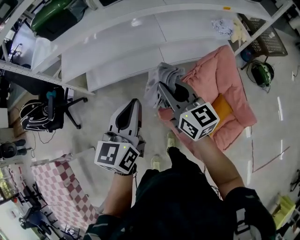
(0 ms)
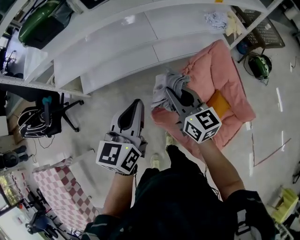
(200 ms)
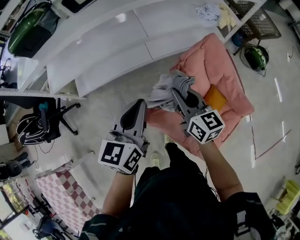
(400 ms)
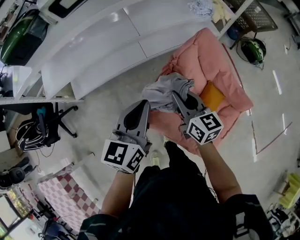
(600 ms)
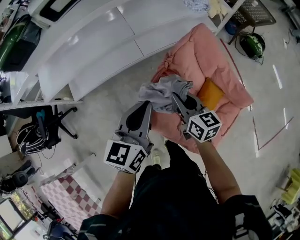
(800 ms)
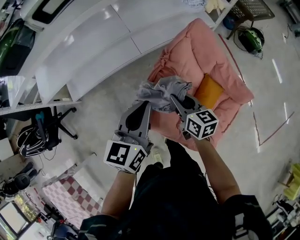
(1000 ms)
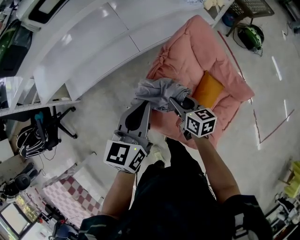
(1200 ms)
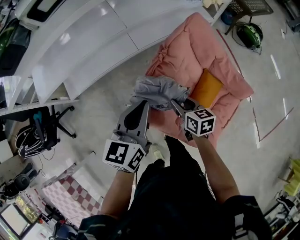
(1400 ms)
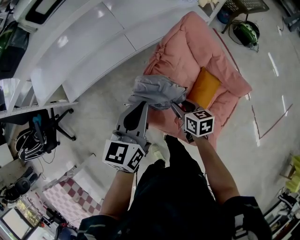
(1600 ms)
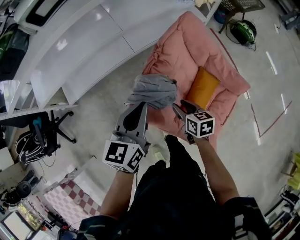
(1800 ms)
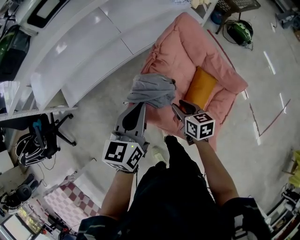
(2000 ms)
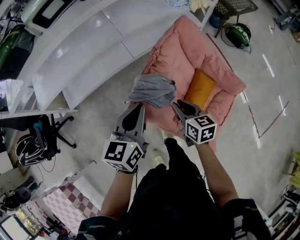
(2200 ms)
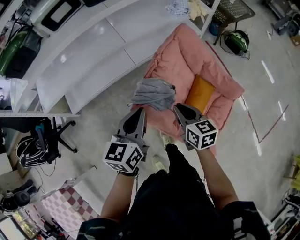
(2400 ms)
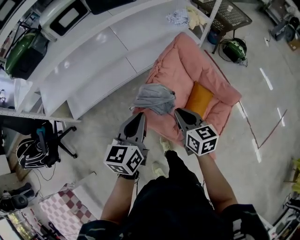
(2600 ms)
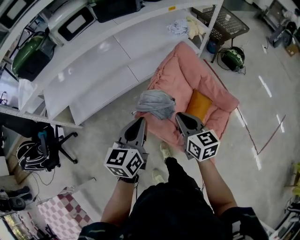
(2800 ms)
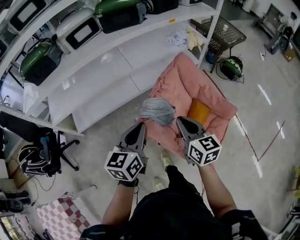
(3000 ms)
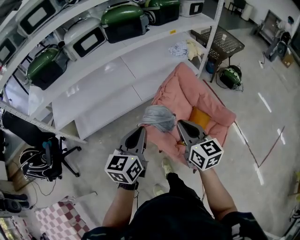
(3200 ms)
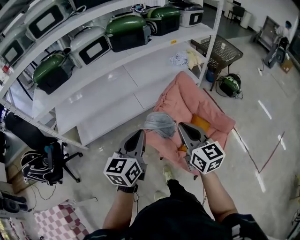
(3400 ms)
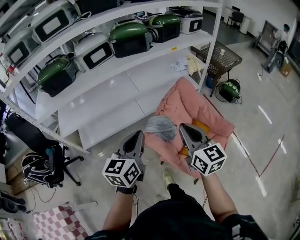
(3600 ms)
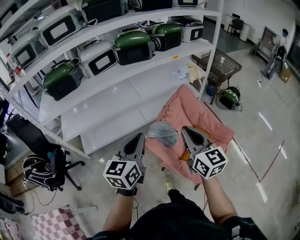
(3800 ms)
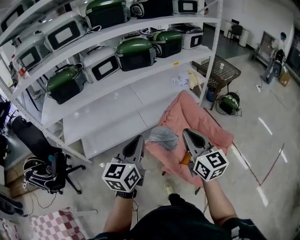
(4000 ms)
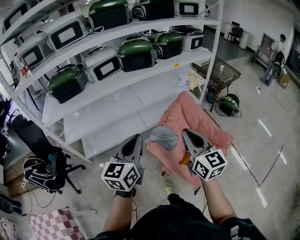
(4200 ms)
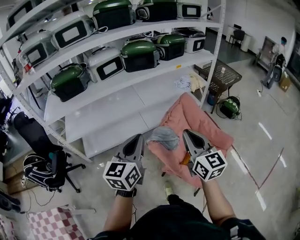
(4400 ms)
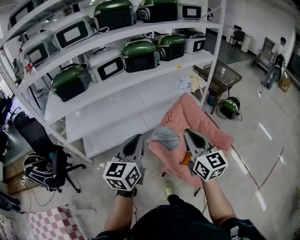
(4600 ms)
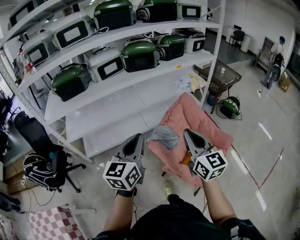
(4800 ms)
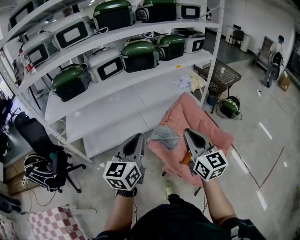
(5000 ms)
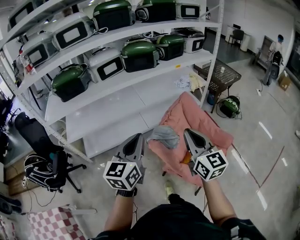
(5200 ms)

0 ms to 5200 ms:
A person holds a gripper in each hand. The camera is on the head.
0 ms to 1800 ms: The right gripper moves downward and to the right, some 35 cm, angles its fingers downward, by some 40 degrees, and opens up. The left gripper is displaced to the right and downward by roughly 20 cm, and changes its angle by approximately 20 degrees.
1800 ms to 3400 ms: The right gripper is displaced upward by roughly 35 cm, points its fingers approximately 30 degrees further upward, and closes up, while the left gripper goes roughly 20 cm upward, backward and to the left.
3400 ms to 5200 ms: The grippers both shift upward and backward by about 10 cm.

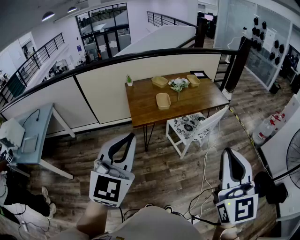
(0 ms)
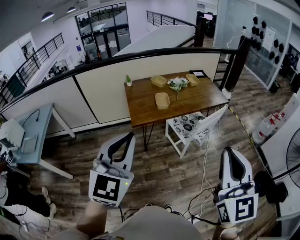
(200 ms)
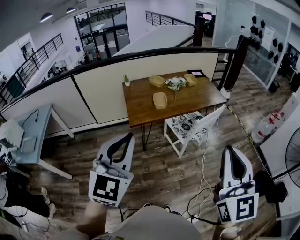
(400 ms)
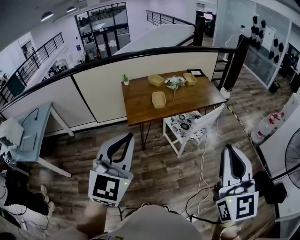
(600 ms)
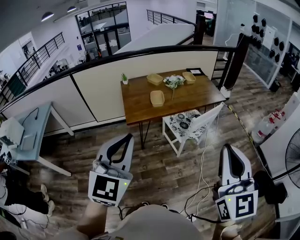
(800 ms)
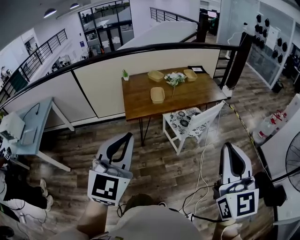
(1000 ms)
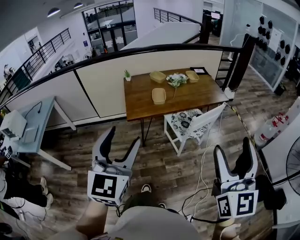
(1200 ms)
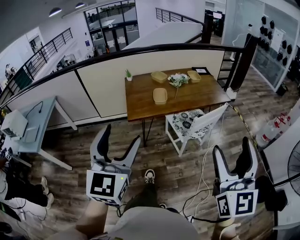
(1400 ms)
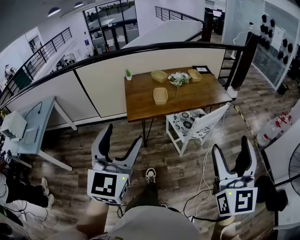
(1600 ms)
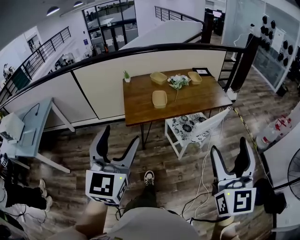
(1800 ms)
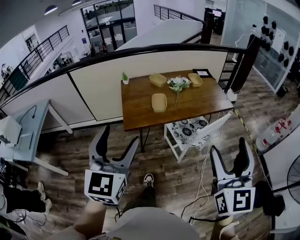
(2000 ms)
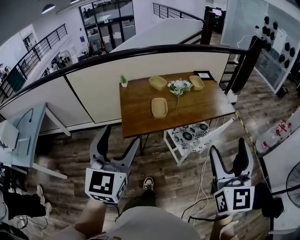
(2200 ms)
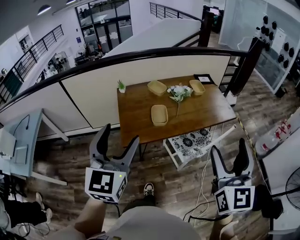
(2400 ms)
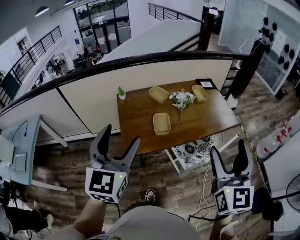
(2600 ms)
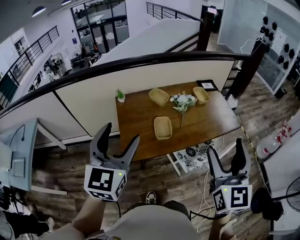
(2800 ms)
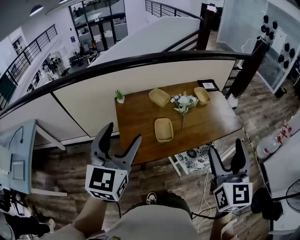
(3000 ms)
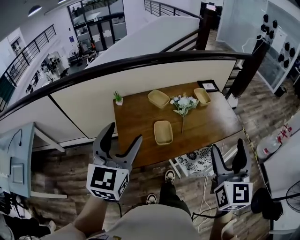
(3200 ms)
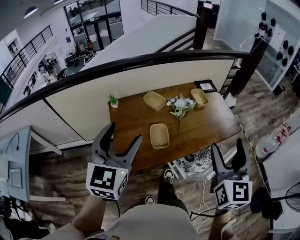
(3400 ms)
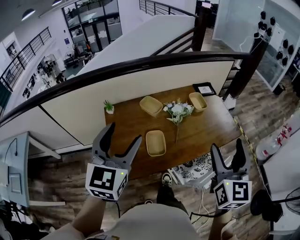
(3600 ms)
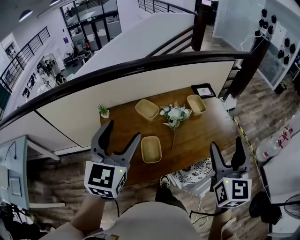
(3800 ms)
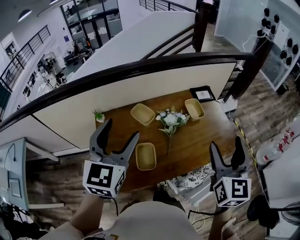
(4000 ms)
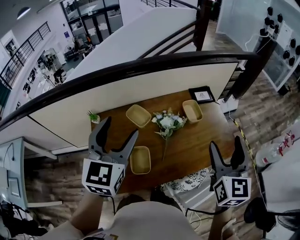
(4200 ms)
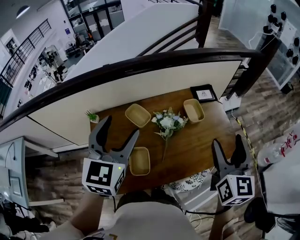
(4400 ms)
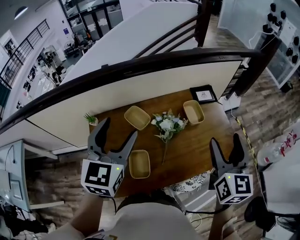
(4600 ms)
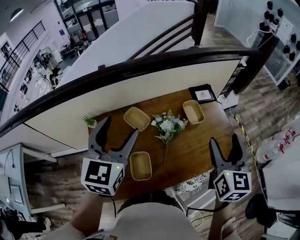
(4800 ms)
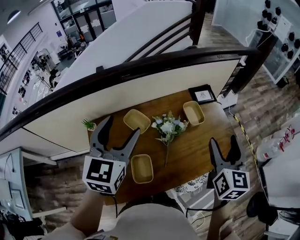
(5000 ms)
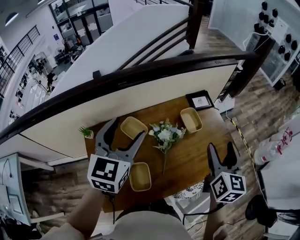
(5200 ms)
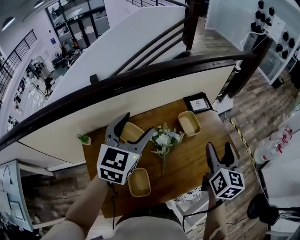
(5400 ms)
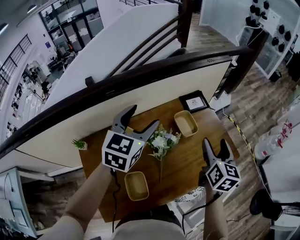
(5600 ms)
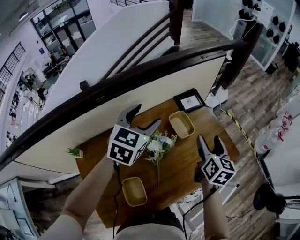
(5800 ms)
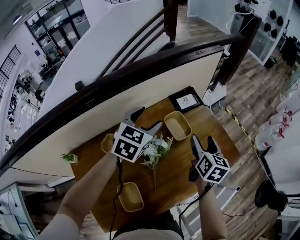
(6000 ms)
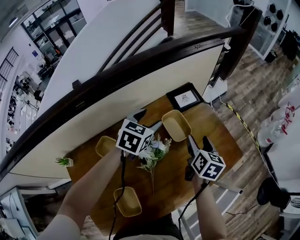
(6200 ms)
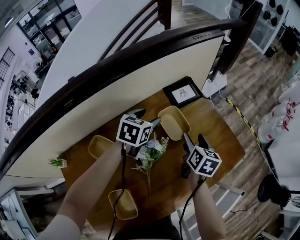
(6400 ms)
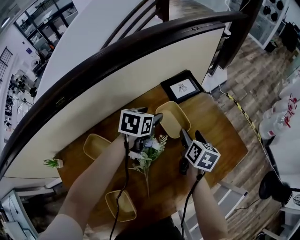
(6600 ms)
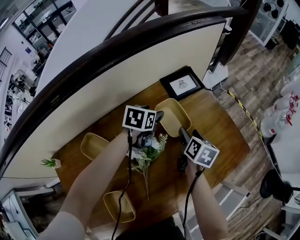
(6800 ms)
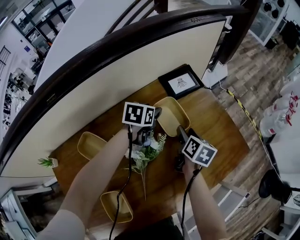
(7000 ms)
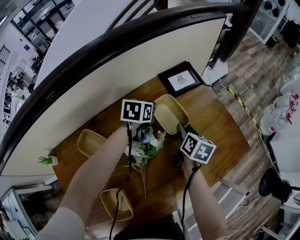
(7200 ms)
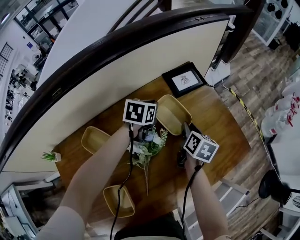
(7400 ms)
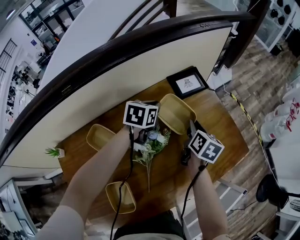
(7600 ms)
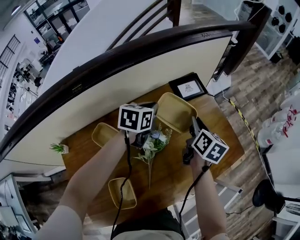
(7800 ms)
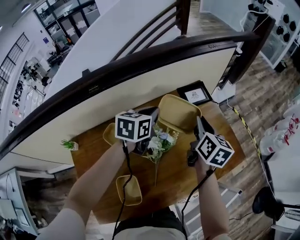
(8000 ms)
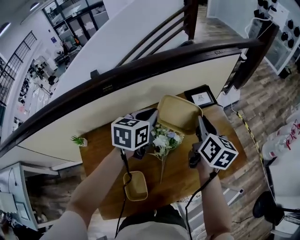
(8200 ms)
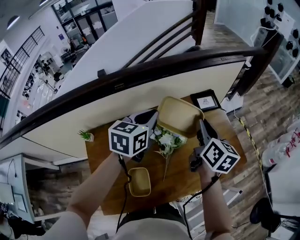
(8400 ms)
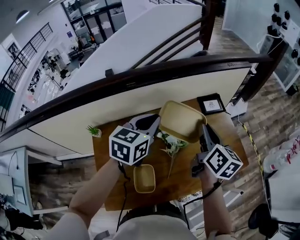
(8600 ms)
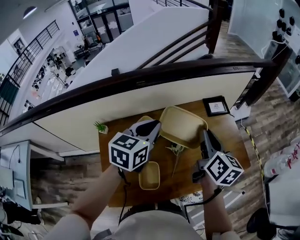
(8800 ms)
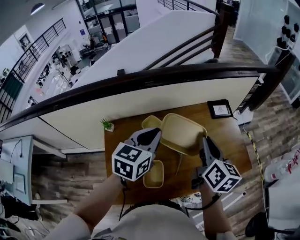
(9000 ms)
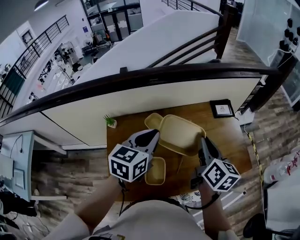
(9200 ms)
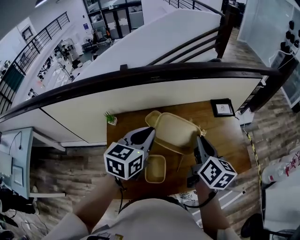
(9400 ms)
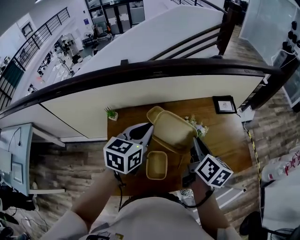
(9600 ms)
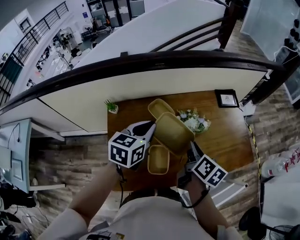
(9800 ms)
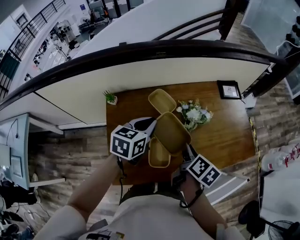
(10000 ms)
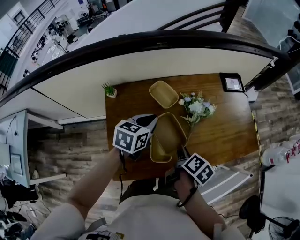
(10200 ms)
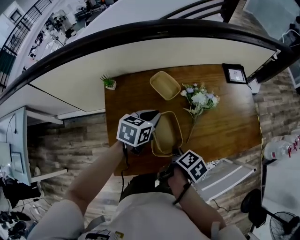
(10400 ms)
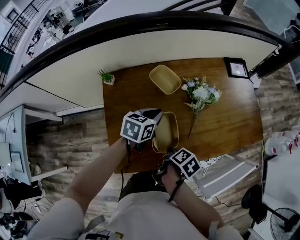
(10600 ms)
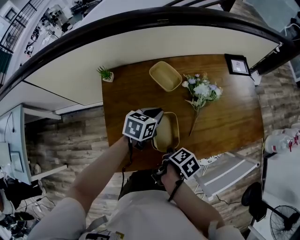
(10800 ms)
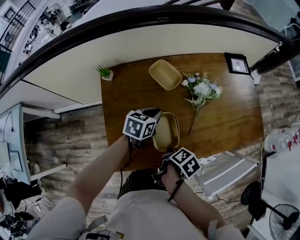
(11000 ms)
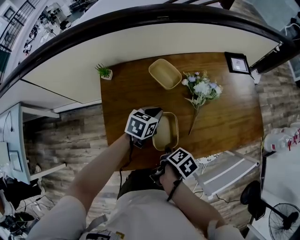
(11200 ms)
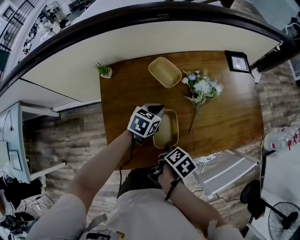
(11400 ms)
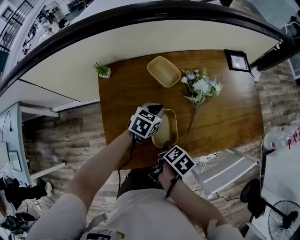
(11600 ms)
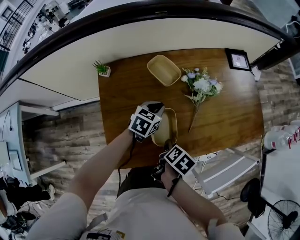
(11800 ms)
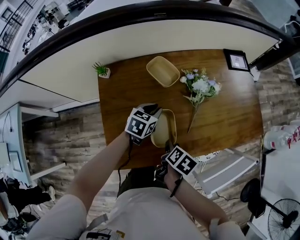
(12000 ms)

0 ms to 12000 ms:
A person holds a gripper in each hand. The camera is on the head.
0 ms to 1600 ms: The right gripper moves to the right and forward, approximately 10 cm, and opens its fingers, while the left gripper heads to the right, covering approximately 5 cm, and opens up.
1600 ms to 3000 ms: Both grippers travel together forward, some 40 cm.
3000 ms to 4400 ms: Both grippers move forward, roughly 35 cm.
4400 ms to 6000 ms: The left gripper heads forward, downward and to the right, covering approximately 35 cm, and changes its angle by some 40 degrees, while the right gripper travels downward and forward by some 30 cm, and swivels about 30 degrees.
6000 ms to 7600 ms: The grippers both shift downward and forward by roughly 20 cm. The left gripper turns by some 30 degrees, and closes. Meanwhile the right gripper closes its fingers.
7600 ms to 9000 ms: The right gripper goes roughly 40 cm upward, backward and to the left, and changes its angle by approximately 30 degrees; the left gripper shifts about 50 cm backward, upward and to the left, and swivels approximately 30 degrees.
9000 ms to 10400 ms: The left gripper heads downward, covering roughly 20 cm, and rotates about 20 degrees; the right gripper goes about 35 cm downward, backward and to the left, and tips its fingers downward by about 40 degrees.
10400 ms to 12000 ms: The right gripper moves downward, approximately 5 cm. The left gripper moves downward, roughly 10 cm.

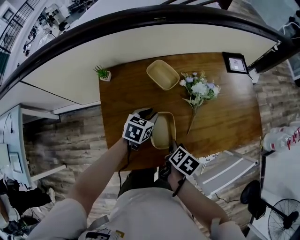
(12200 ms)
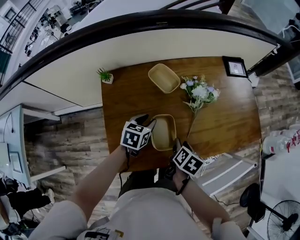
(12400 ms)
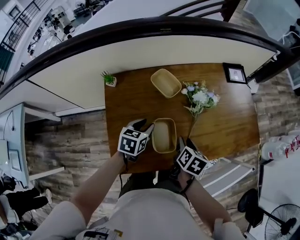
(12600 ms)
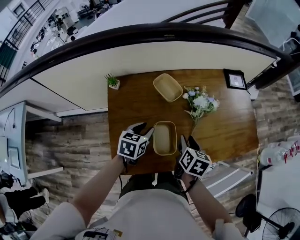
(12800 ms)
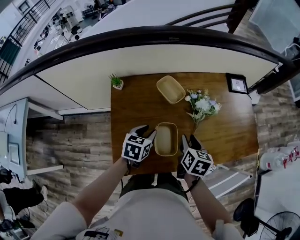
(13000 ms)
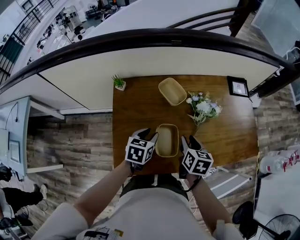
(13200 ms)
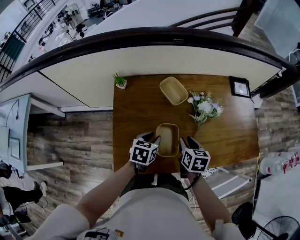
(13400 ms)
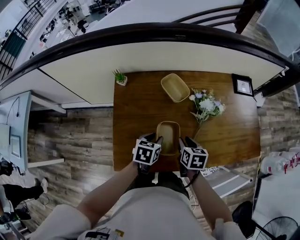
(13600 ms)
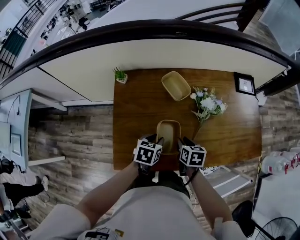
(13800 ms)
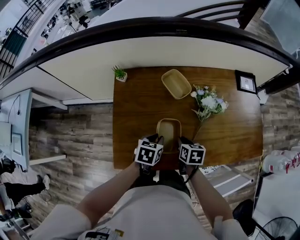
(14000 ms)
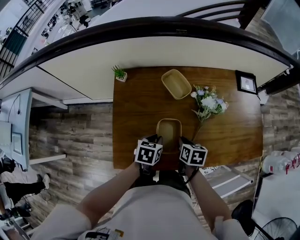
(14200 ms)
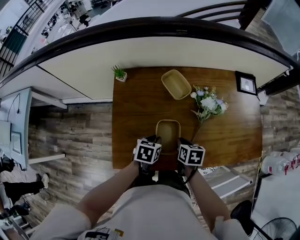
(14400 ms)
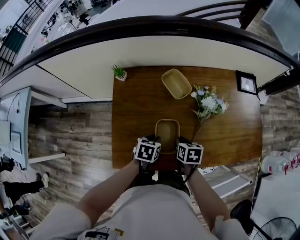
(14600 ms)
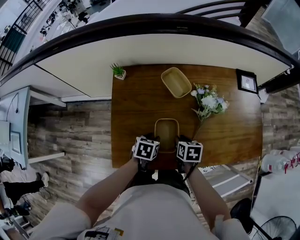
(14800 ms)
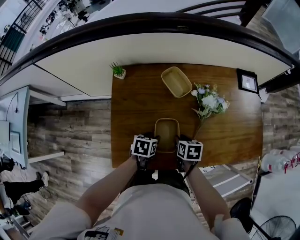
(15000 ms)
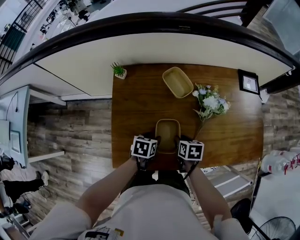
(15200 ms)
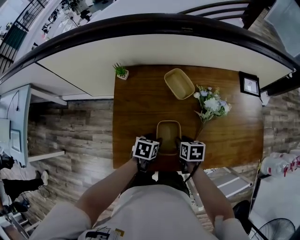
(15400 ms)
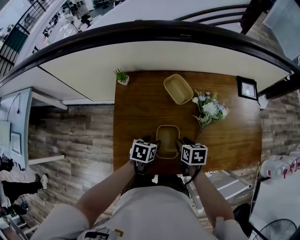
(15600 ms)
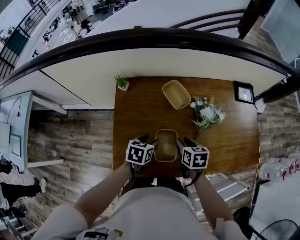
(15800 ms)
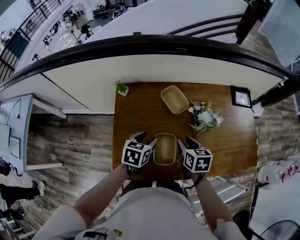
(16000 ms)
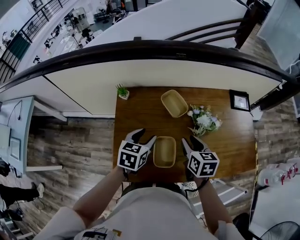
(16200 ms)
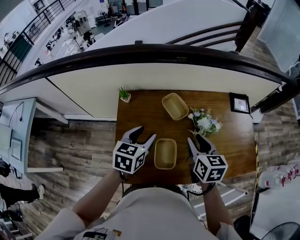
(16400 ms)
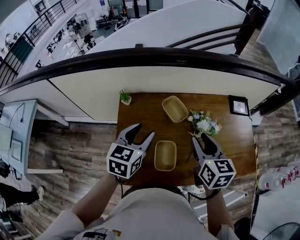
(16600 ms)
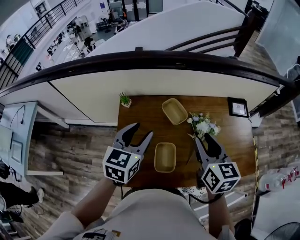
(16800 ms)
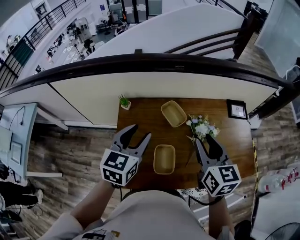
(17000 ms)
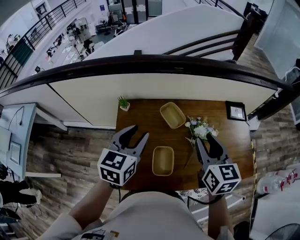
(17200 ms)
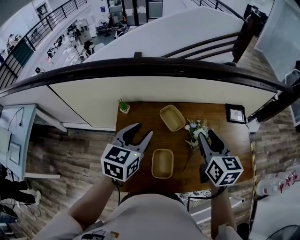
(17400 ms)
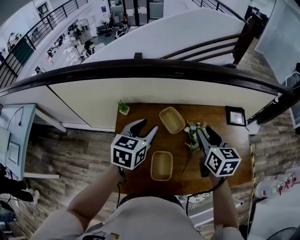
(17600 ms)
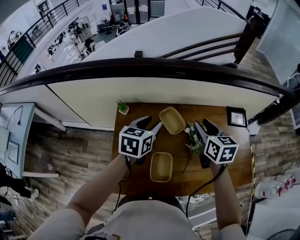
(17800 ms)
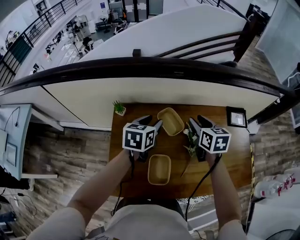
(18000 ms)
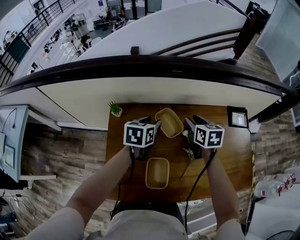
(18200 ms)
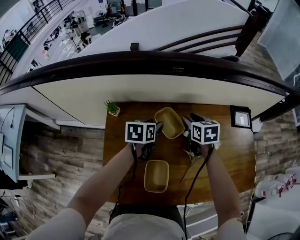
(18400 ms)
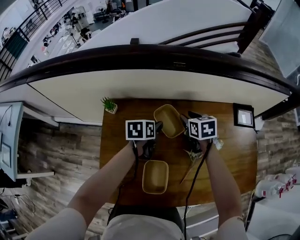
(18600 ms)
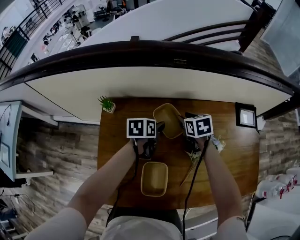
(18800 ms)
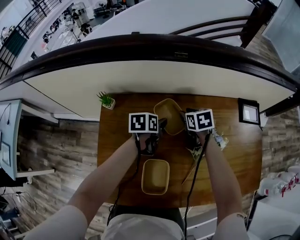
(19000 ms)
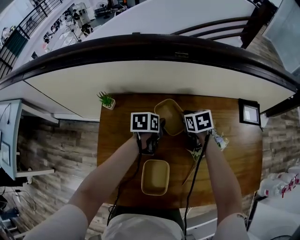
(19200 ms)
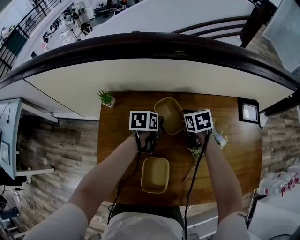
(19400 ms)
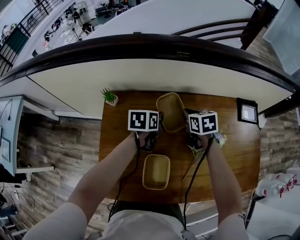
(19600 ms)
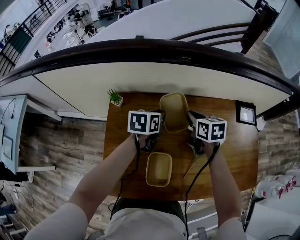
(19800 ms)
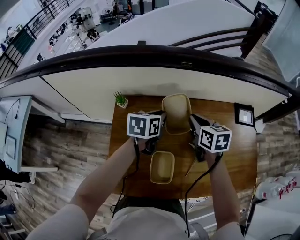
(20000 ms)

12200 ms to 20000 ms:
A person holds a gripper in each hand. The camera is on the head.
12200 ms to 13800 ms: The left gripper shifts roughly 10 cm backward. The right gripper shifts some 5 cm forward, goes upward and returns, roughly 10 cm each way, and turns by about 40 degrees.
13800 ms to 15400 ms: The left gripper shifts about 5 cm downward.
15400 ms to 16800 ms: Both grippers move upward, approximately 35 cm. The left gripper tilts its fingers approximately 40 degrees upward. The right gripper angles its fingers upward, by approximately 40 degrees.
16800 ms to 18400 ms: The right gripper shifts approximately 30 cm forward and downward, and swivels roughly 20 degrees, while the left gripper moves downward and forward, some 25 cm, and changes its angle by about 30 degrees.
18400 ms to 20000 ms: The right gripper is displaced backward by approximately 5 cm, moves roughly 10 cm downward and comes back, and closes up, while the left gripper travels downward and back again, approximately 10 cm each way, and closes.
